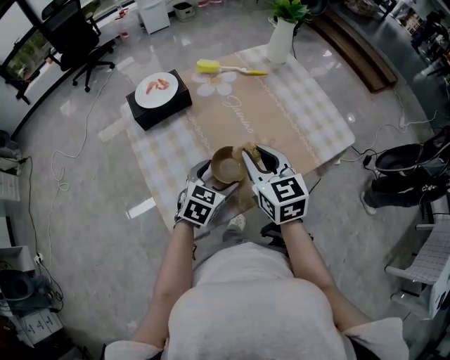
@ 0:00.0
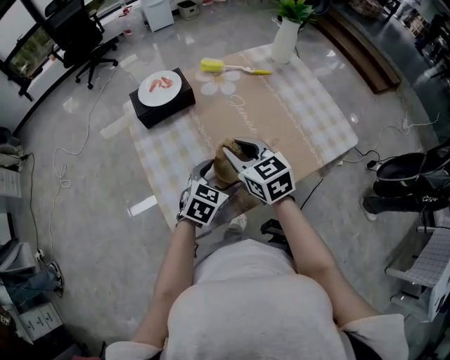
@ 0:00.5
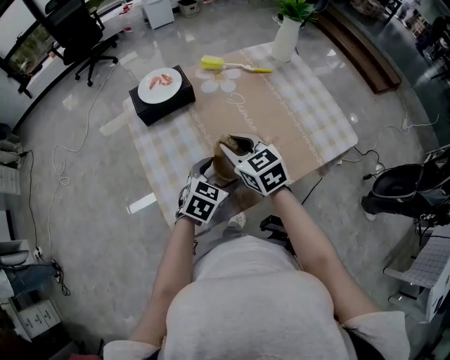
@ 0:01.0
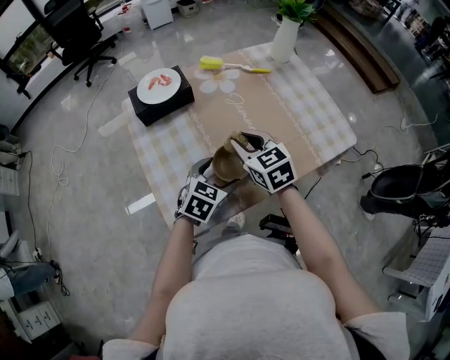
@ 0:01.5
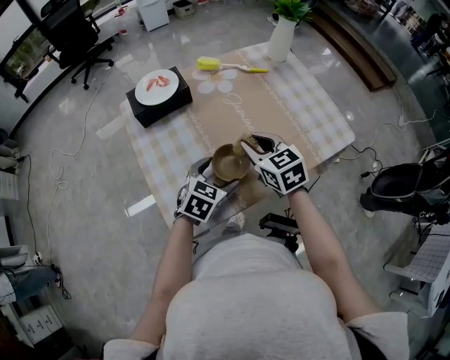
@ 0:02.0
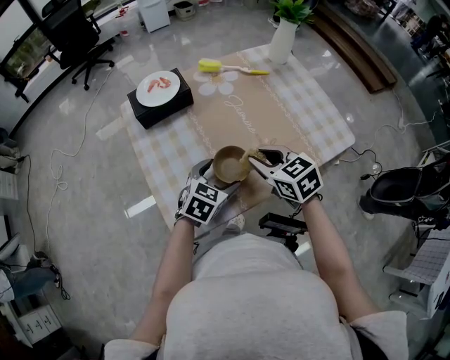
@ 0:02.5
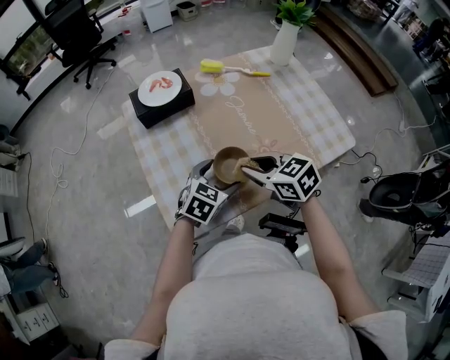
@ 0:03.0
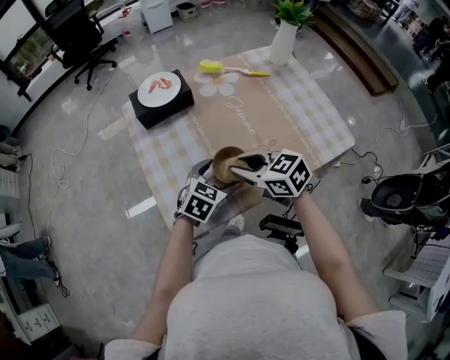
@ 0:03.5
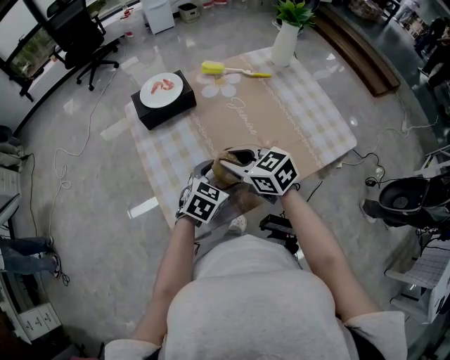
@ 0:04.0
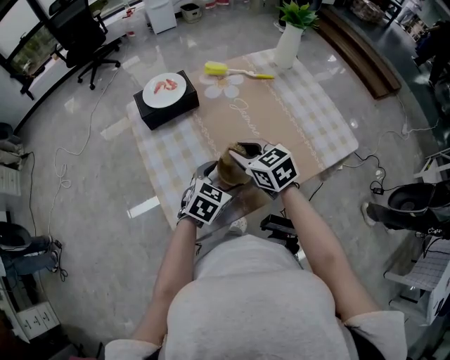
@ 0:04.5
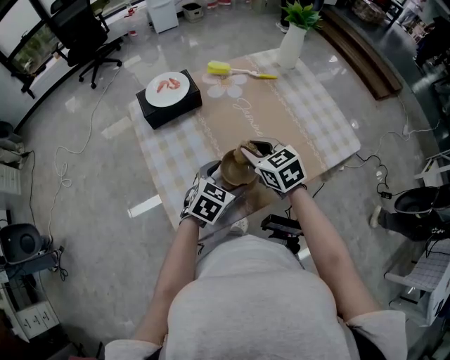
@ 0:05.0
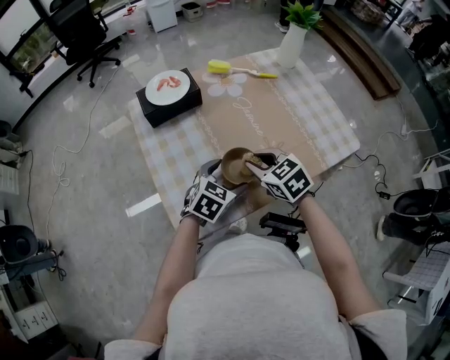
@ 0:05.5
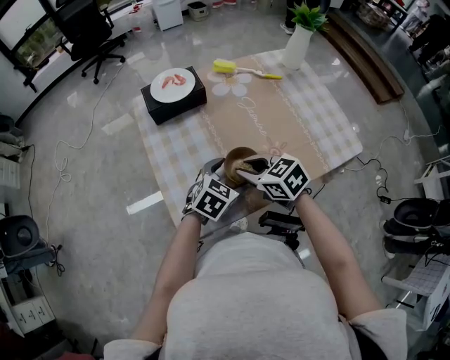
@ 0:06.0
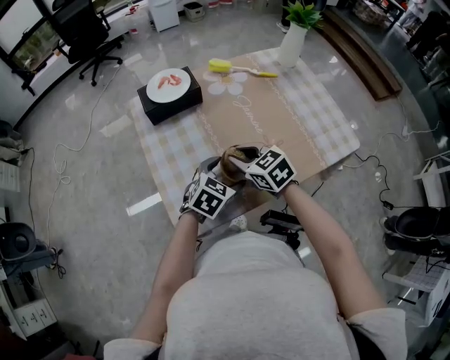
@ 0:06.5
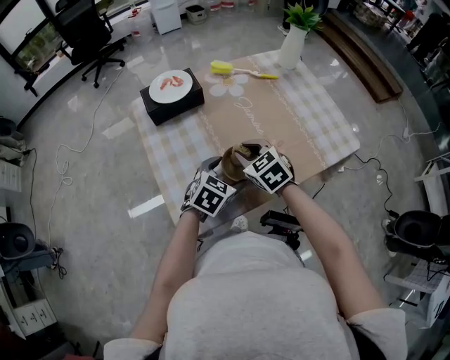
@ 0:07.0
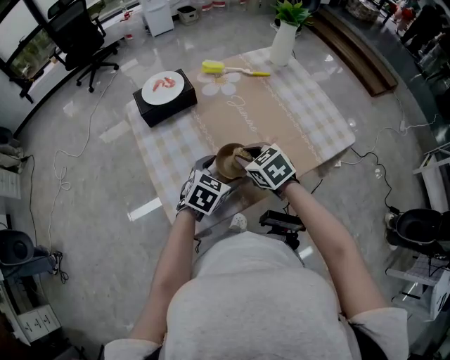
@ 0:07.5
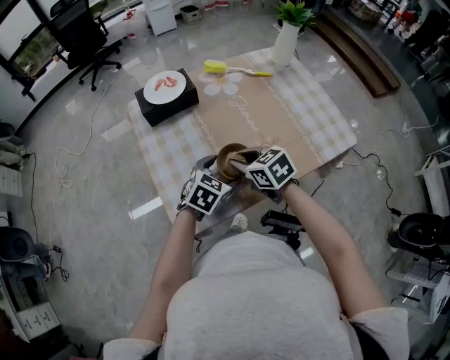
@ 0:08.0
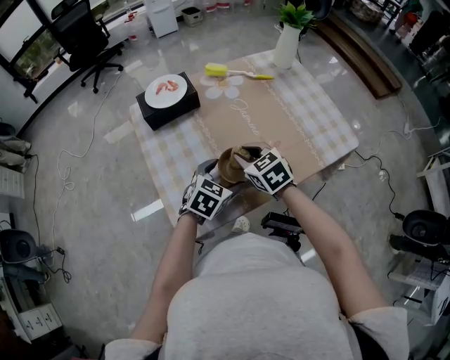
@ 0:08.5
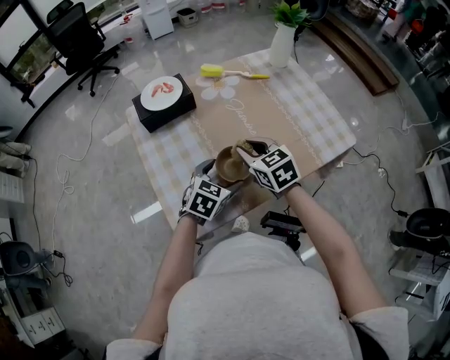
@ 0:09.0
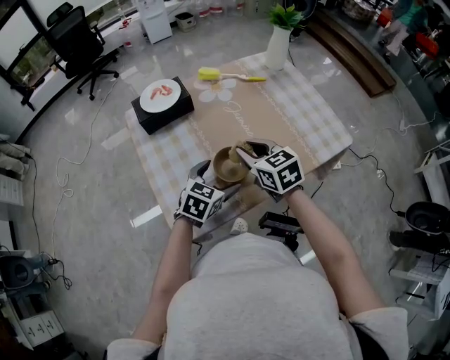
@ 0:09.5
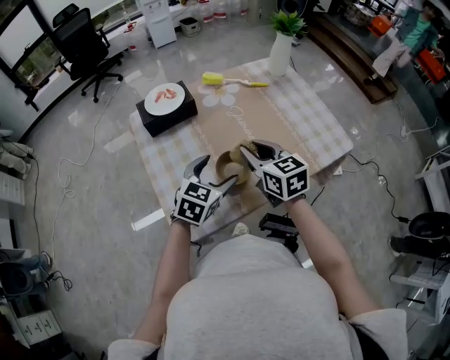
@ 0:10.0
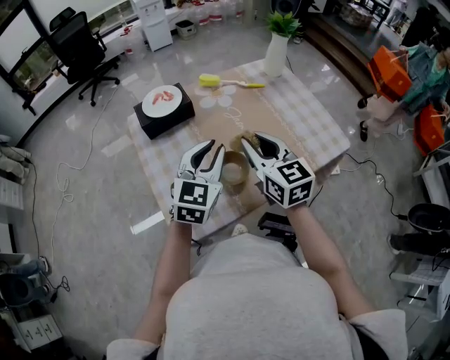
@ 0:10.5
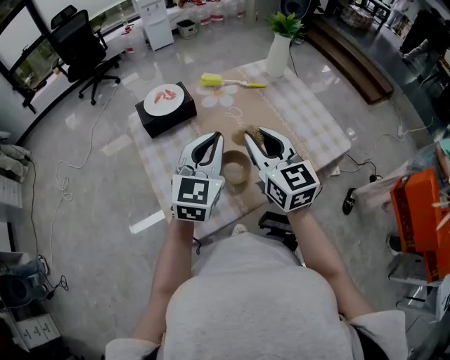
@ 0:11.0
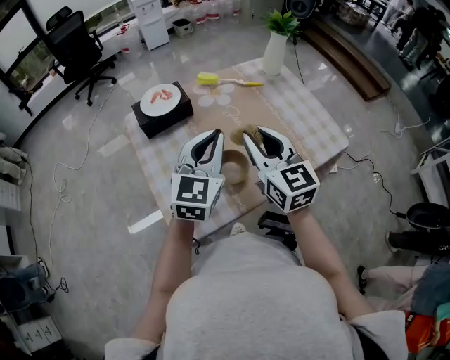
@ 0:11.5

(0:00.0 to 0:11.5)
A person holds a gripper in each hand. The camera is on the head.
0:00.0 - 0:02.0: The right gripper shifts by roughly 5 cm.
0:02.0 - 0:04.0: The right gripper shifts roughly 5 cm to the left, and changes its angle by about 20 degrees.
0:07.5 - 0:09.5: The right gripper travels upward by roughly 5 cm.
0:09.5 - 0:11.5: The right gripper moves upward, approximately 15 cm, and turns by roughly 30 degrees; the left gripper heads upward, covering some 20 cm, tilts its fingers roughly 30 degrees upward, and closes.

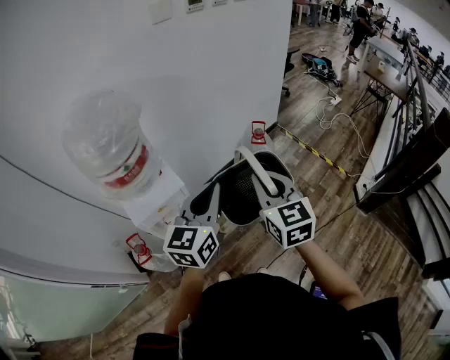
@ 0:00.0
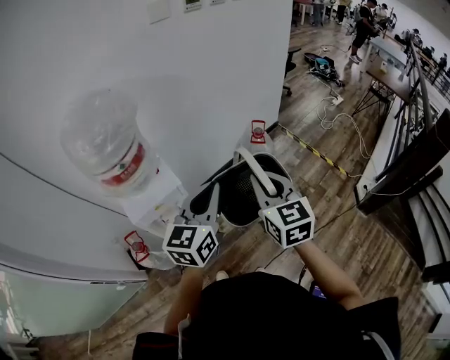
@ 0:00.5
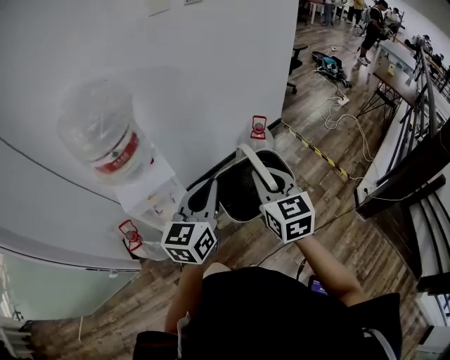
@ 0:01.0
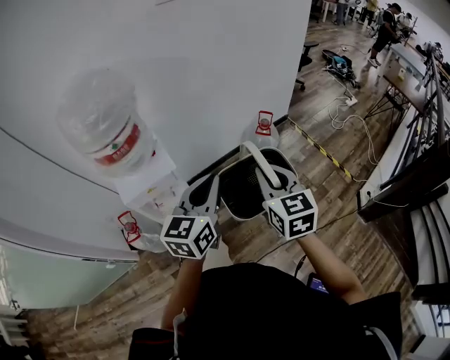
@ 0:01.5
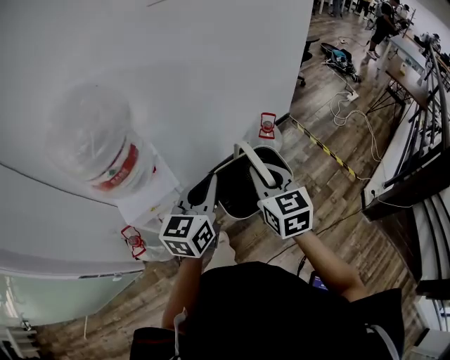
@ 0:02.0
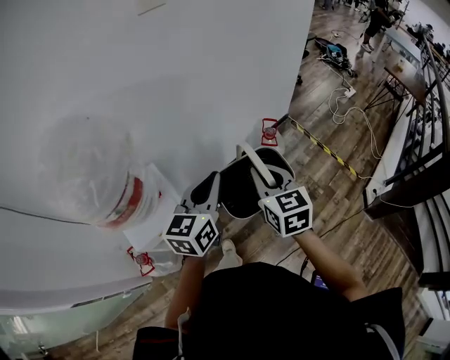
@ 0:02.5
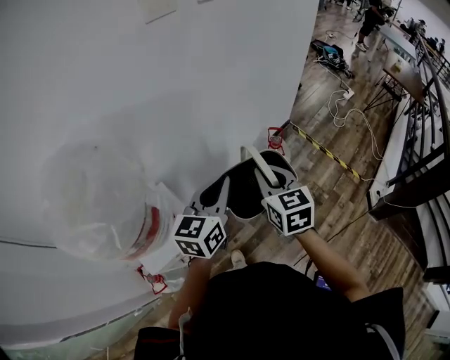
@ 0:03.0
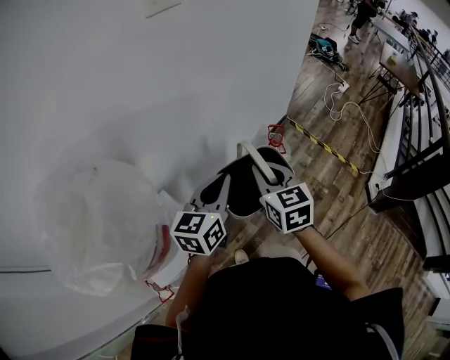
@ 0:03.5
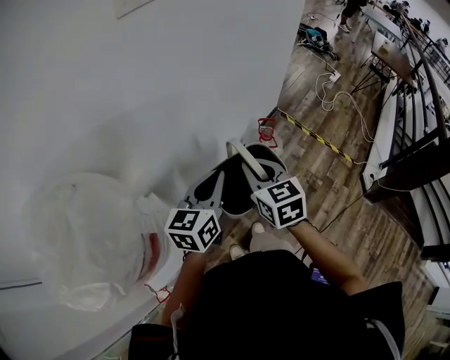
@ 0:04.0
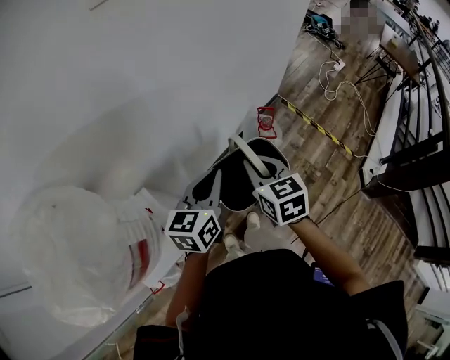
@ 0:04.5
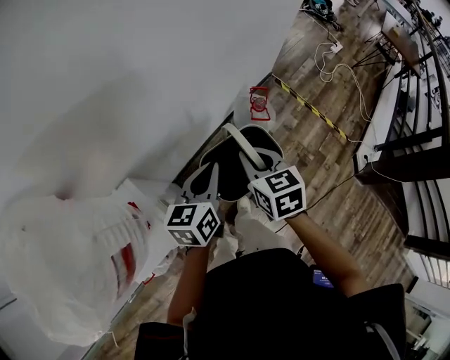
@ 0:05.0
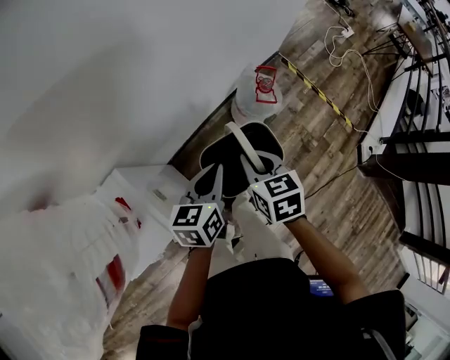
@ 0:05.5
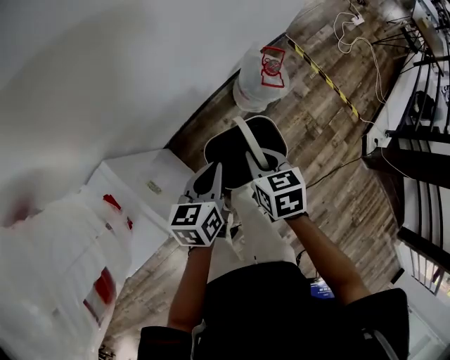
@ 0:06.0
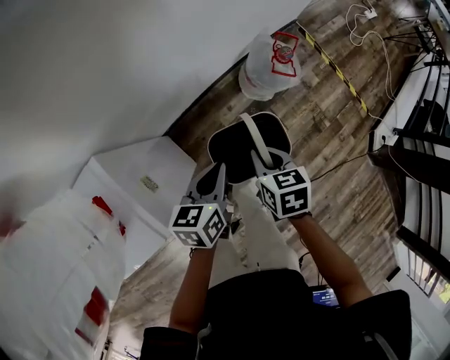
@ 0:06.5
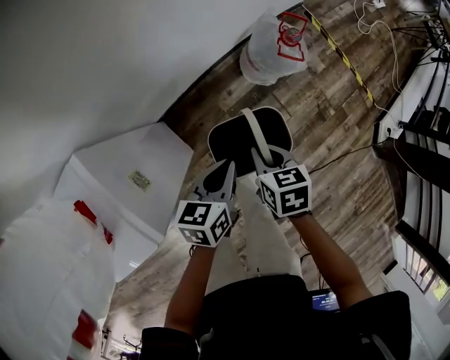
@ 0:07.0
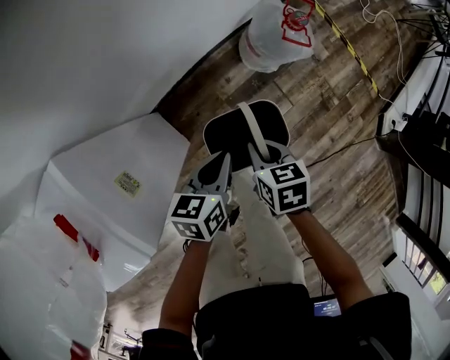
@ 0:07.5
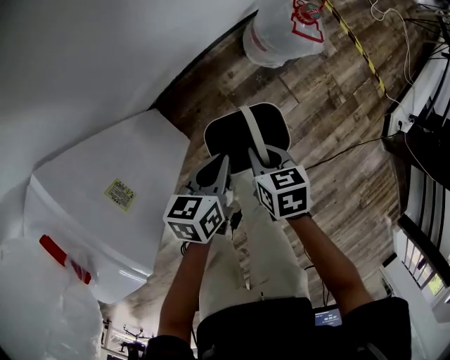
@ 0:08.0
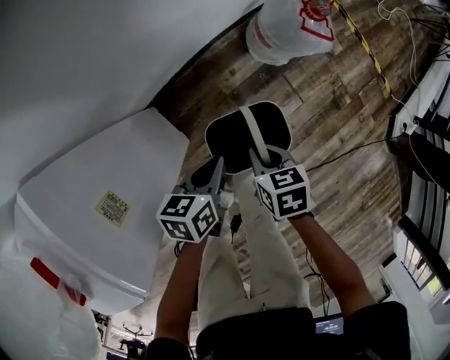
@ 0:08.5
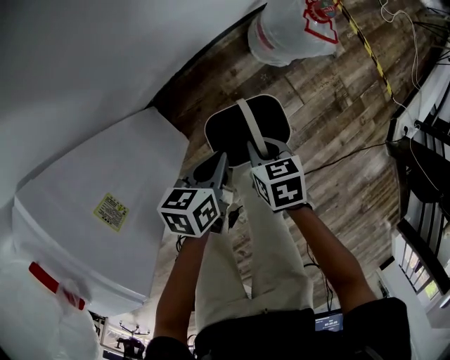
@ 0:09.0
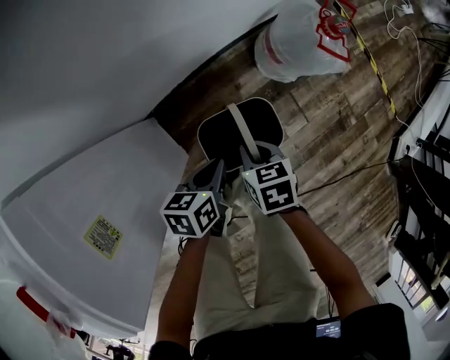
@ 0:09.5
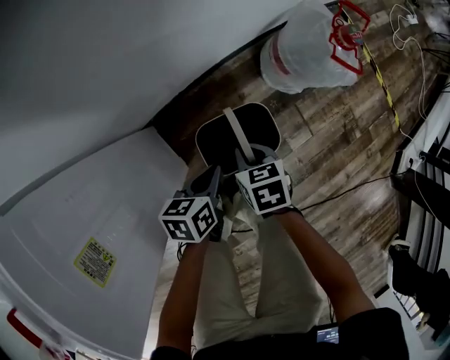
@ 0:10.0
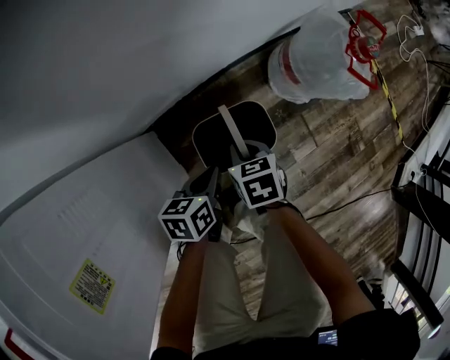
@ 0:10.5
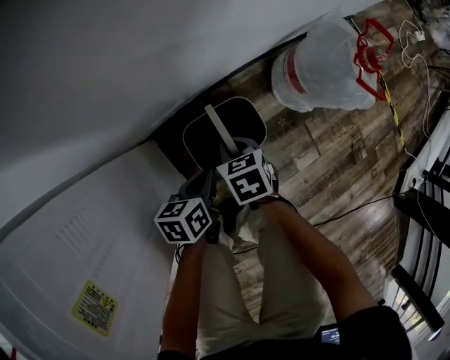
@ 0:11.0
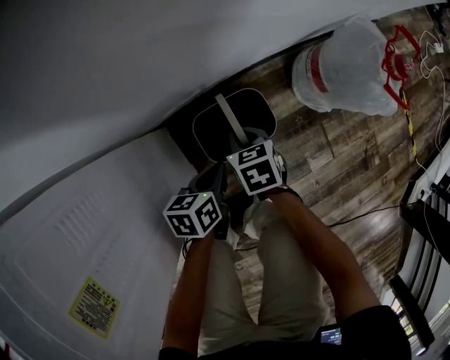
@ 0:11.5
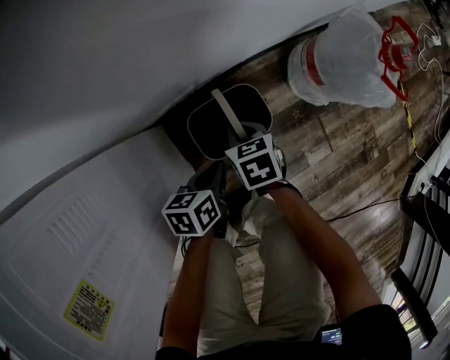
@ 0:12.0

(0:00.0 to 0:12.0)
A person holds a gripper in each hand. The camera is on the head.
0:00.0 - 0:02.0: Both grippers travel together forward, some 10 cm.
0:02.0 - 0:04.0: The right gripper heads forward and to the left, covering roughly 25 cm. Meanwhile the left gripper shifts roughly 20 cm forward.
0:04.0 - 0:06.0: The grippers both shift downward by about 25 cm. The left gripper changes its angle by approximately 30 degrees, while the right gripper changes its angle by roughly 30 degrees.
0:06.0 - 0:08.0: The two grippers go roughly 20 cm downward.
0:08.0 - 0:10.0: The right gripper is displaced downward and forward by roughly 20 cm. The left gripper heads downward, covering some 20 cm.
0:10.0 - 0:12.0: The left gripper moves downward, some 10 cm. The right gripper is displaced downward, forward and to the left by about 15 cm.

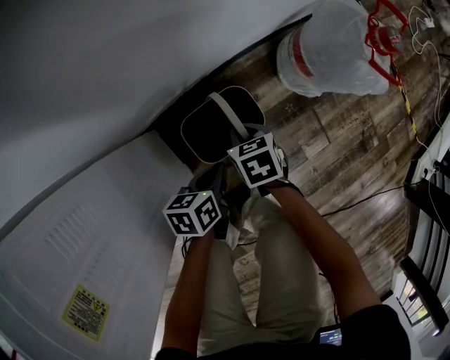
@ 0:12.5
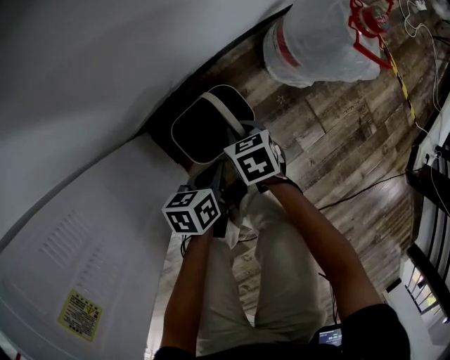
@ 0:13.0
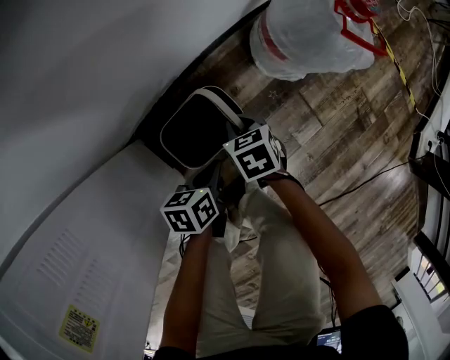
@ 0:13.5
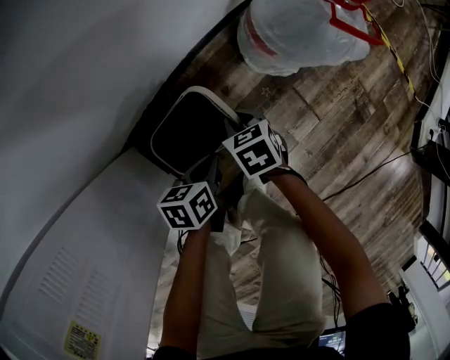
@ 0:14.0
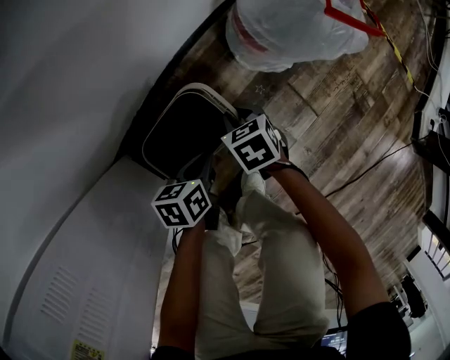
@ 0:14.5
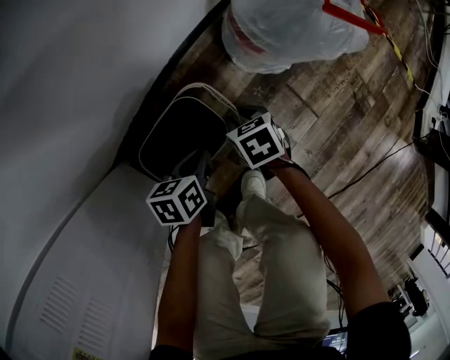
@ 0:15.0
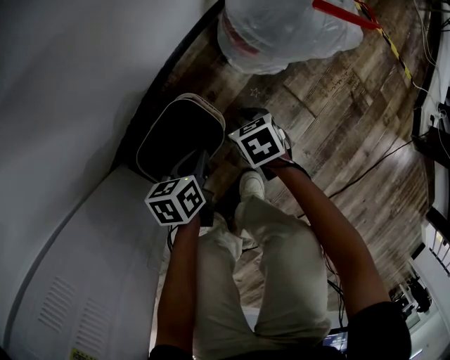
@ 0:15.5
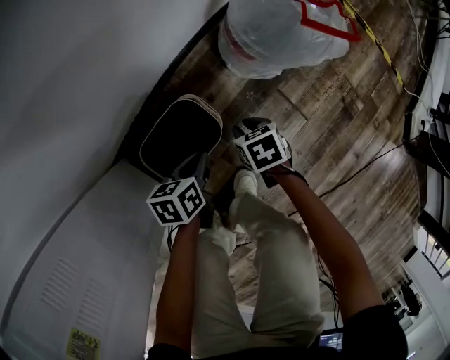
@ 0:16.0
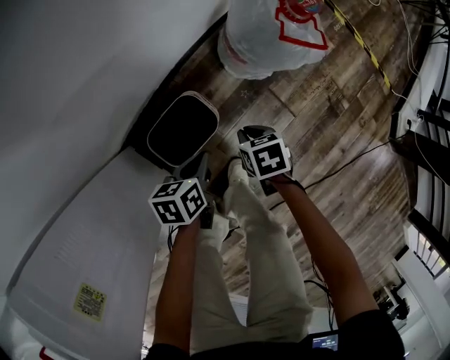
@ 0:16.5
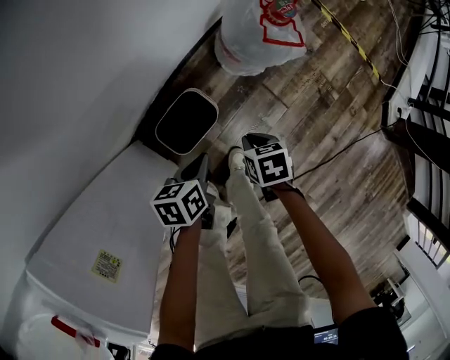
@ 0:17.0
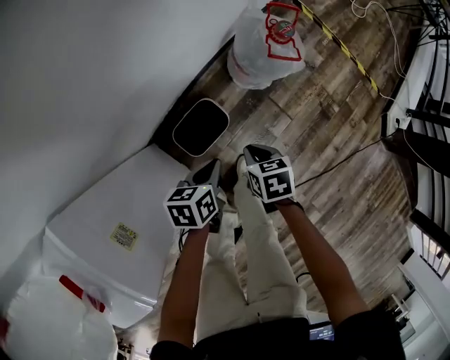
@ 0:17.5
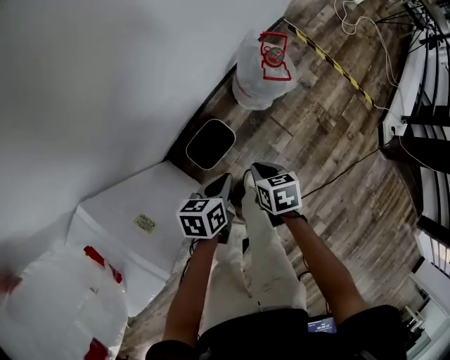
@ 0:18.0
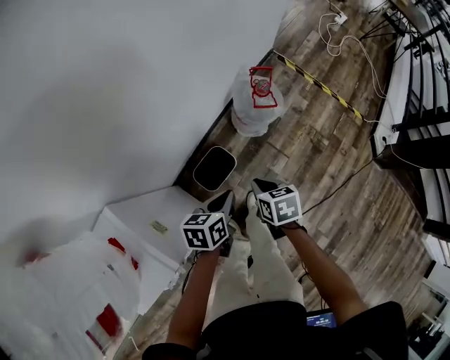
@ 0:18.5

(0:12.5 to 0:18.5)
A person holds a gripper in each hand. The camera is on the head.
0:12.5 - 0:14.5: The right gripper goes some 15 cm to the right and downward, while the left gripper heads downward and to the right, covering about 10 cm.
0:14.5 - 0:16.5: The left gripper shifts about 15 cm upward. The right gripper shifts roughly 15 cm upward, to the right and backward.
0:16.5 - 0:18.5: Both grippers move upward, roughly 35 cm.
